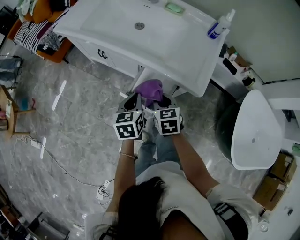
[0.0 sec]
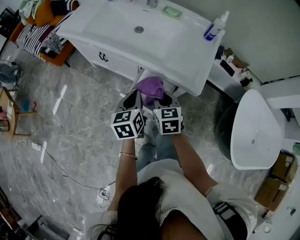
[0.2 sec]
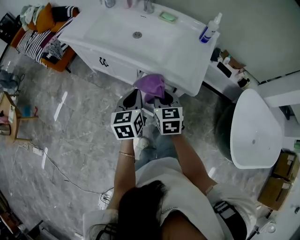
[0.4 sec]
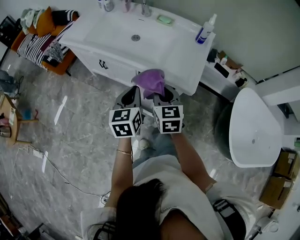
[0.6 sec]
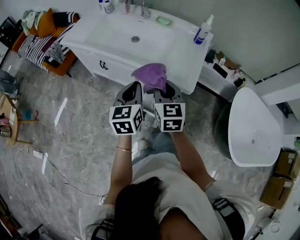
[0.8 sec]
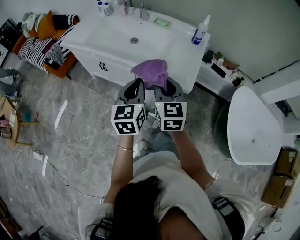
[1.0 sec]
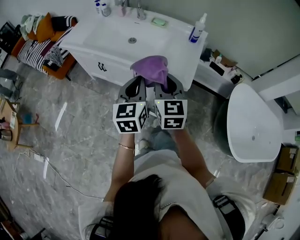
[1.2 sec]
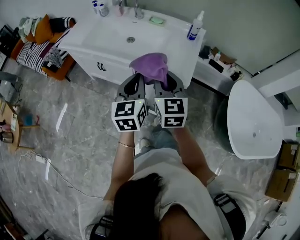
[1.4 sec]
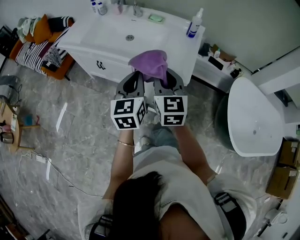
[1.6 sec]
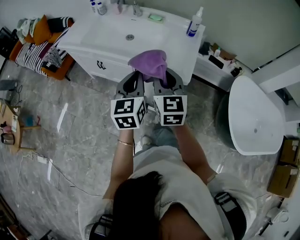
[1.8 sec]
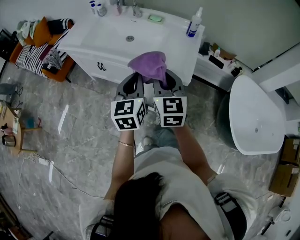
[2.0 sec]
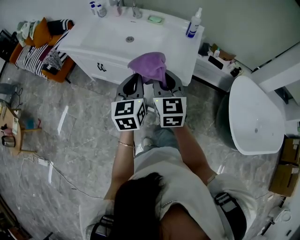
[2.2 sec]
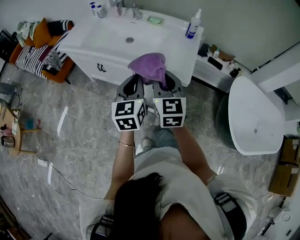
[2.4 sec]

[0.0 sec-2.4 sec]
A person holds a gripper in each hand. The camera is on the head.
0.0 sec to 1.2 sec: Both grippers move upward, about 20 cm. The left gripper rotates approximately 30 degrees, while the right gripper swivels approximately 30 degrees.
1.2 sec to 2.4 sec: The grippers stay close to where they were, moving slightly.

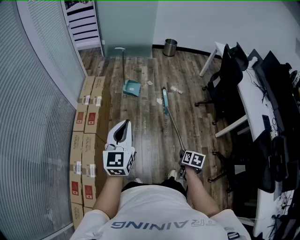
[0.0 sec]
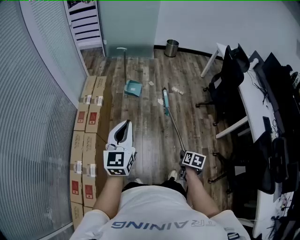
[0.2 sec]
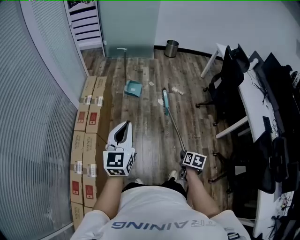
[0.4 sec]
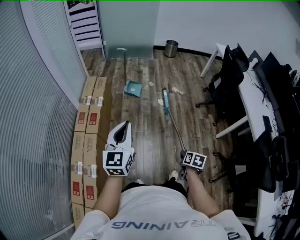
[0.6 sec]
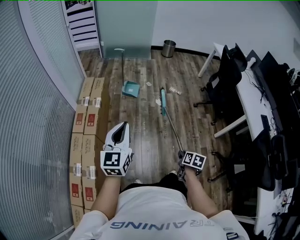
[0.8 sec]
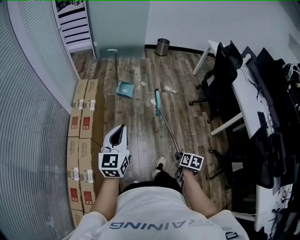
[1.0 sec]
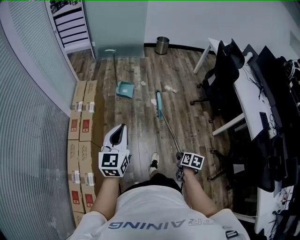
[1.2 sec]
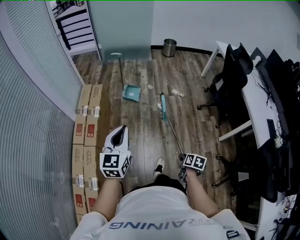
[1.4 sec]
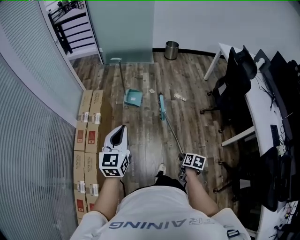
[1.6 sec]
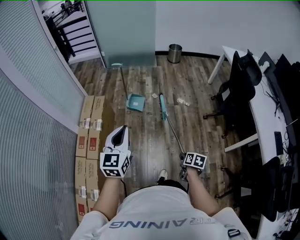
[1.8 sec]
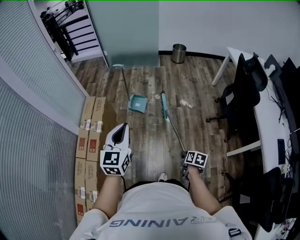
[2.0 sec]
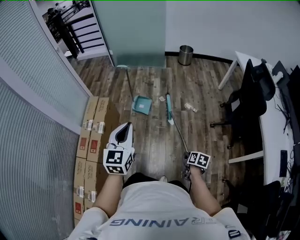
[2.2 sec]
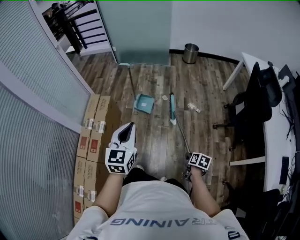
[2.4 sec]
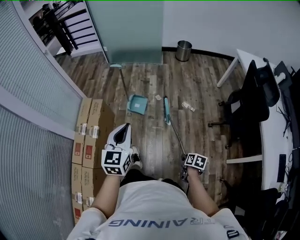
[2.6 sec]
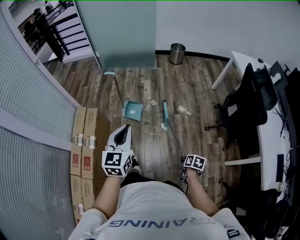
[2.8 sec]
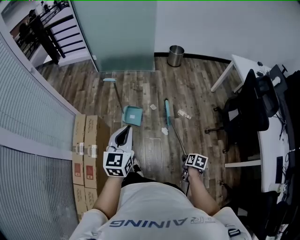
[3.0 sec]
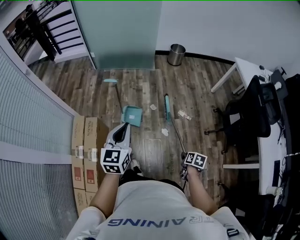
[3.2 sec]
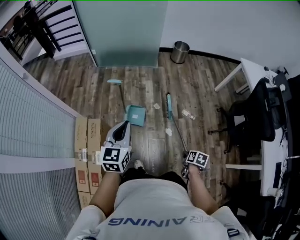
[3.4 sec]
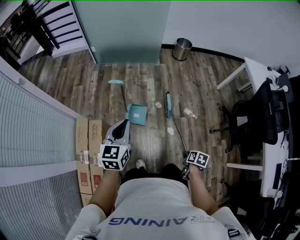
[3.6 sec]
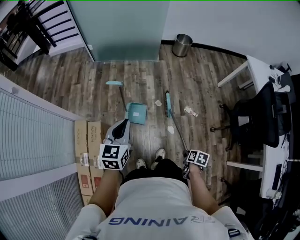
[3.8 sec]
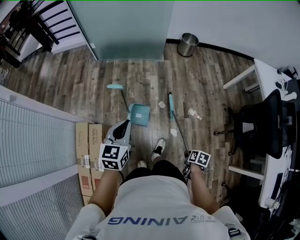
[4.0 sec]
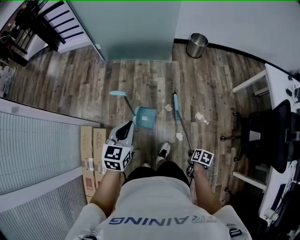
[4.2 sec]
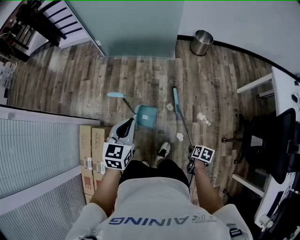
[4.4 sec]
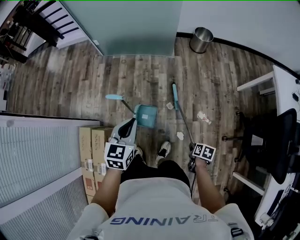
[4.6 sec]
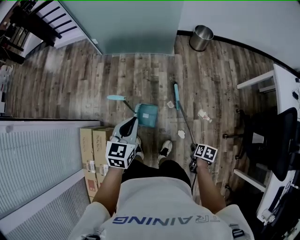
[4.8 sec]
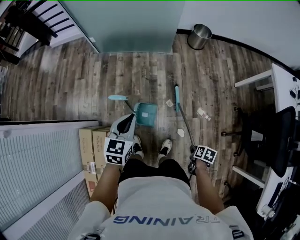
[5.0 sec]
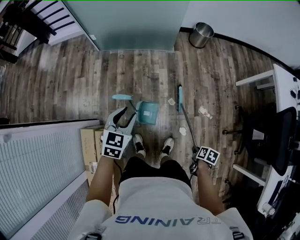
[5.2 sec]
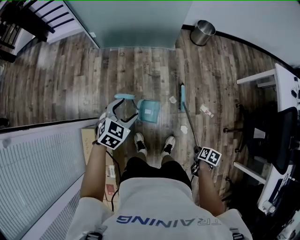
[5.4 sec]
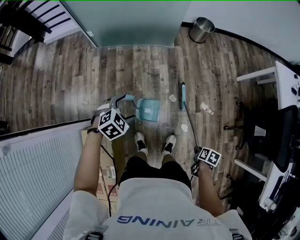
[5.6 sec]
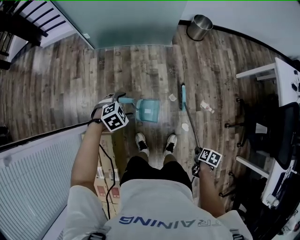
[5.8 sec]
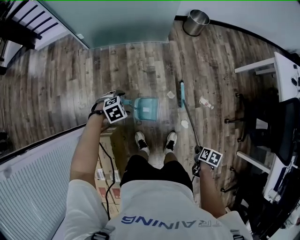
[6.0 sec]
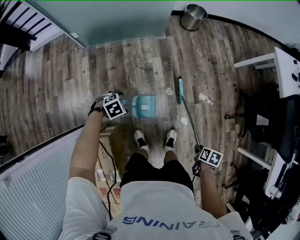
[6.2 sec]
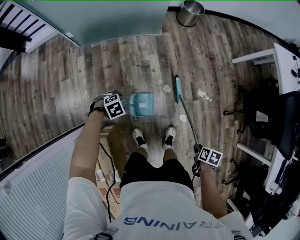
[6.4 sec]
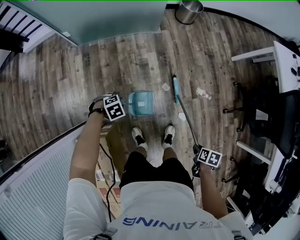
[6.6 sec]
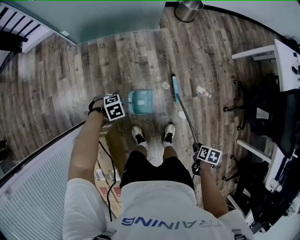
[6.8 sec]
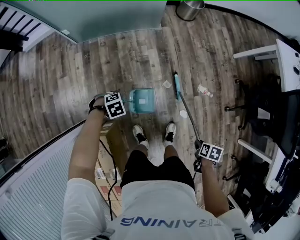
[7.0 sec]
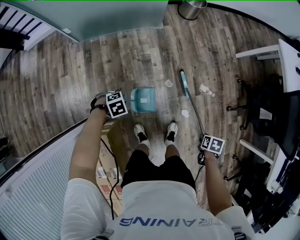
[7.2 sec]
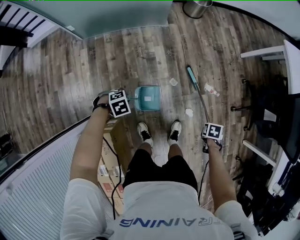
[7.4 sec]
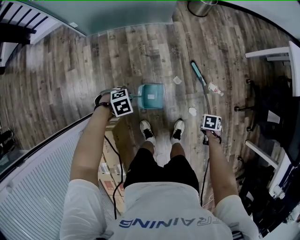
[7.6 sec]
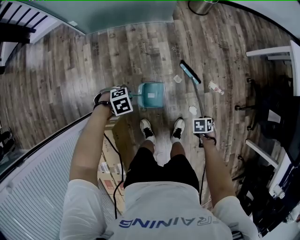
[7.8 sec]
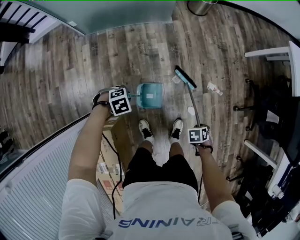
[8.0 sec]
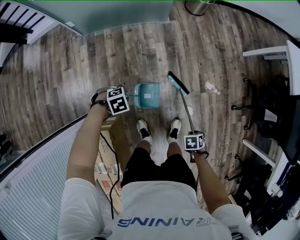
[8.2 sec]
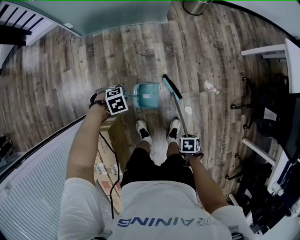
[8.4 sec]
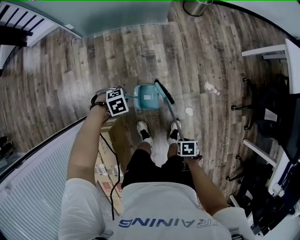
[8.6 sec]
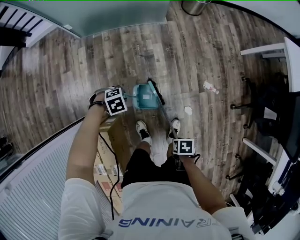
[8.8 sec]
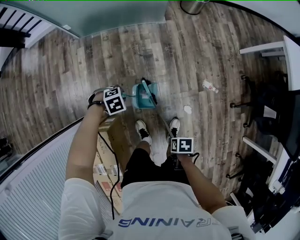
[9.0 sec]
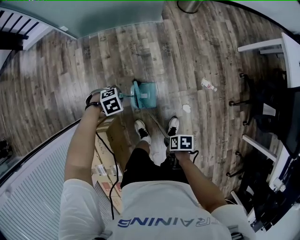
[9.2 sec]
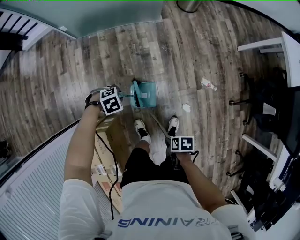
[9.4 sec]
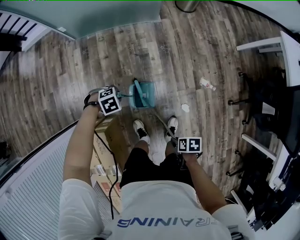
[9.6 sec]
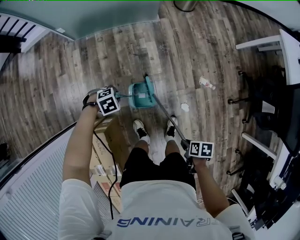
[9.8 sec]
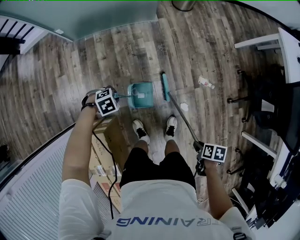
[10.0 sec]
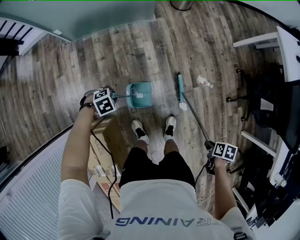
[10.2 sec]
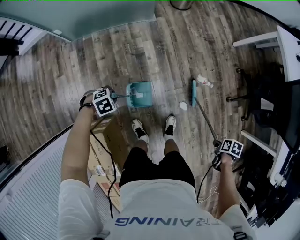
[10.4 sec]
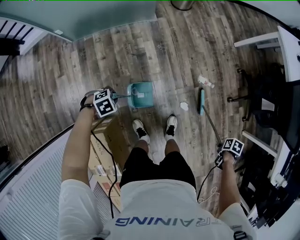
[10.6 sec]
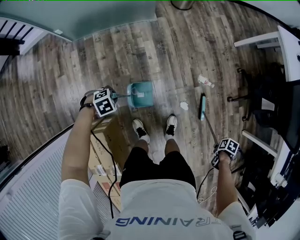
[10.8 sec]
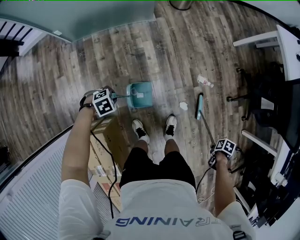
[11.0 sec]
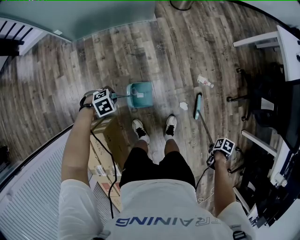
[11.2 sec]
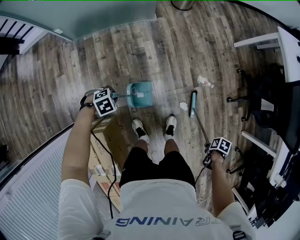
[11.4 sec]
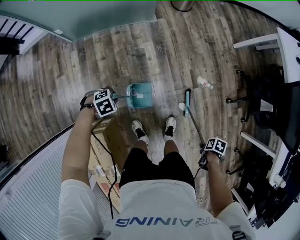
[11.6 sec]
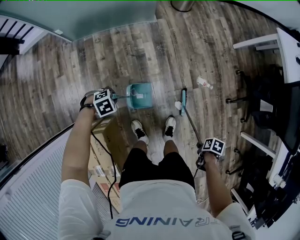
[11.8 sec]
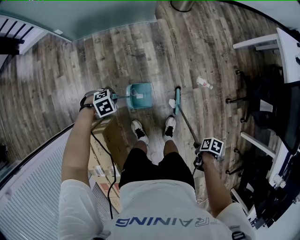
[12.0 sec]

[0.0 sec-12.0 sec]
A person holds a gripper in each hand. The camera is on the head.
0.0 sec to 1.6 sec: The left gripper ends up approximately 15 cm from where it was.
1.6 sec to 3.0 sec: The left gripper changes place by approximately 35 cm.
3.0 sec to 4.4 sec: The left gripper ends up roughly 35 cm from where it was.
4.4 sec to 6.0 sec: The left gripper is displaced downward by some 25 cm, points its fingers roughly 50 degrees further downward, and opens its fingers.
6.0 sec to 7.6 sec: The left gripper goes approximately 5 cm downward, and closes its fingers.

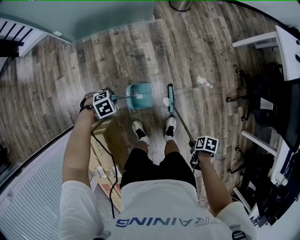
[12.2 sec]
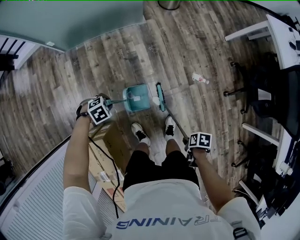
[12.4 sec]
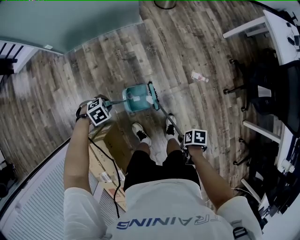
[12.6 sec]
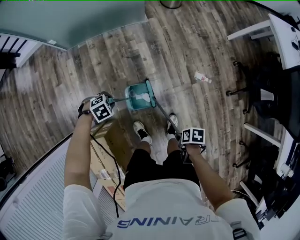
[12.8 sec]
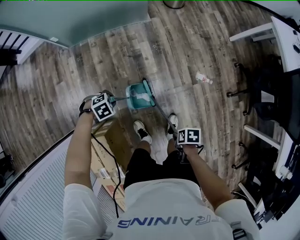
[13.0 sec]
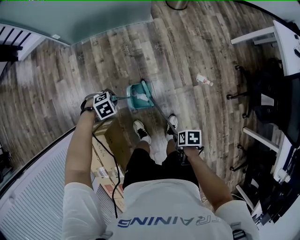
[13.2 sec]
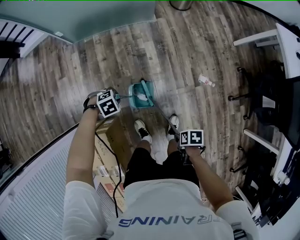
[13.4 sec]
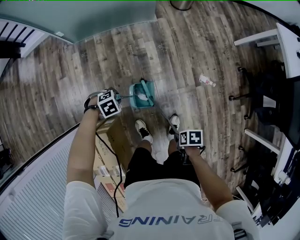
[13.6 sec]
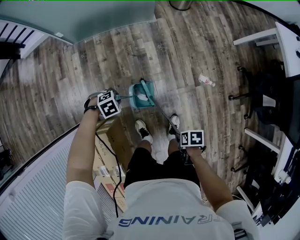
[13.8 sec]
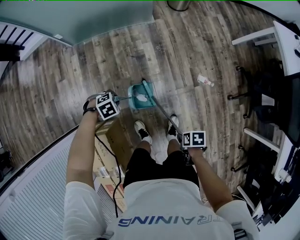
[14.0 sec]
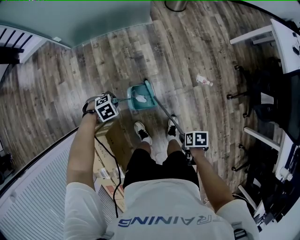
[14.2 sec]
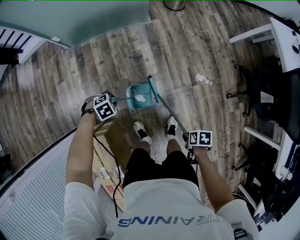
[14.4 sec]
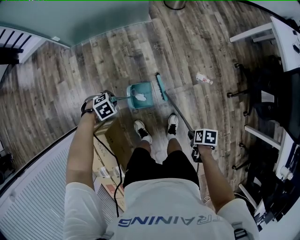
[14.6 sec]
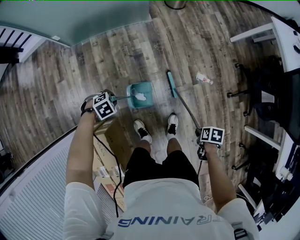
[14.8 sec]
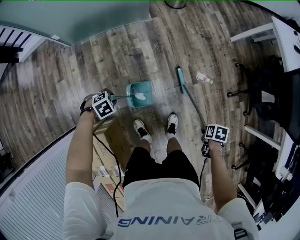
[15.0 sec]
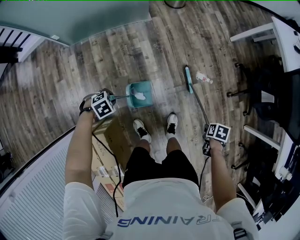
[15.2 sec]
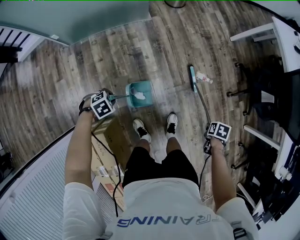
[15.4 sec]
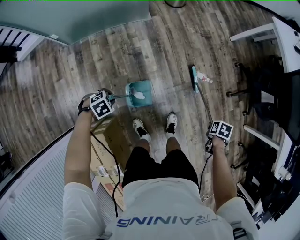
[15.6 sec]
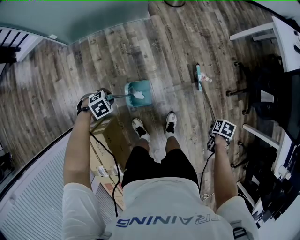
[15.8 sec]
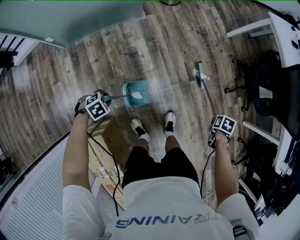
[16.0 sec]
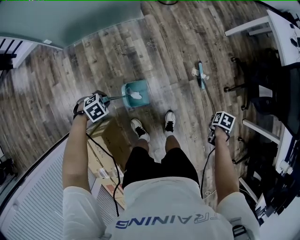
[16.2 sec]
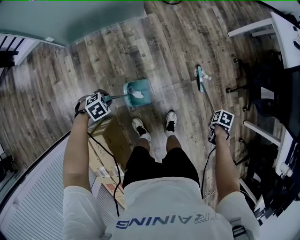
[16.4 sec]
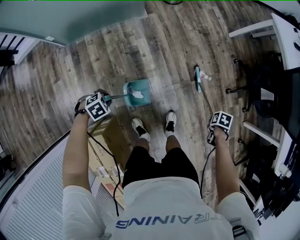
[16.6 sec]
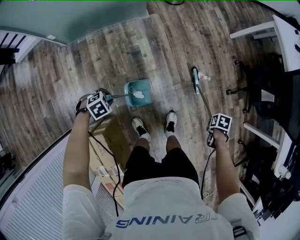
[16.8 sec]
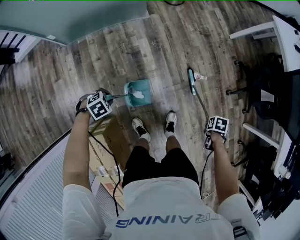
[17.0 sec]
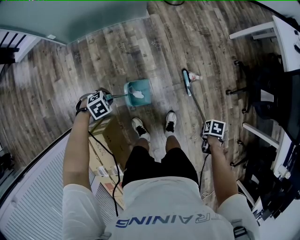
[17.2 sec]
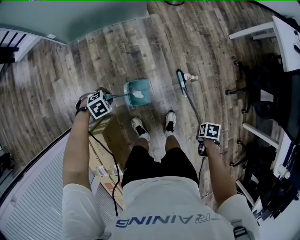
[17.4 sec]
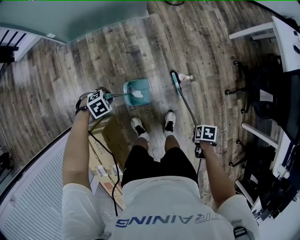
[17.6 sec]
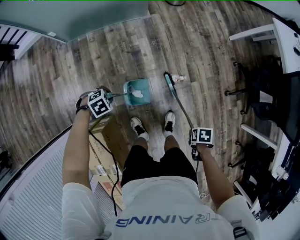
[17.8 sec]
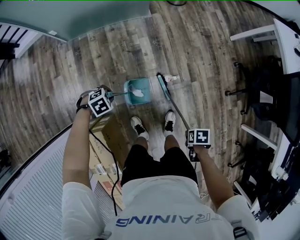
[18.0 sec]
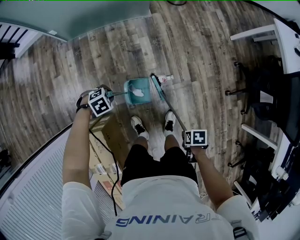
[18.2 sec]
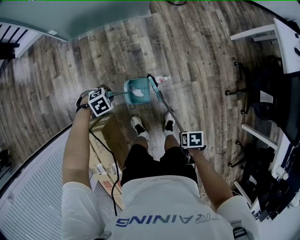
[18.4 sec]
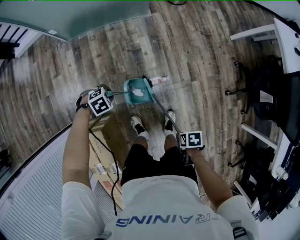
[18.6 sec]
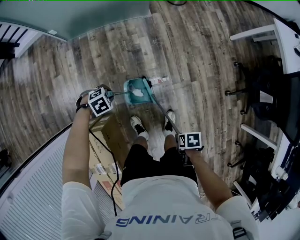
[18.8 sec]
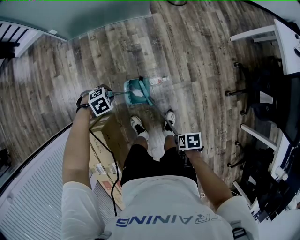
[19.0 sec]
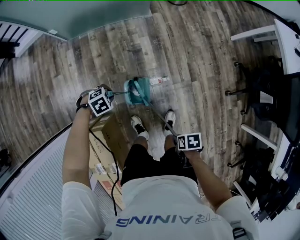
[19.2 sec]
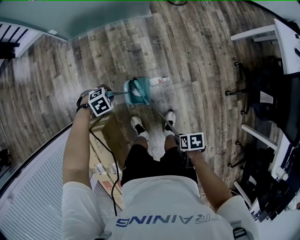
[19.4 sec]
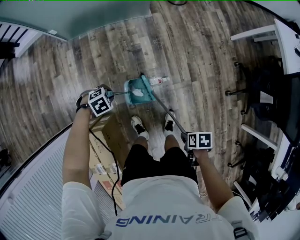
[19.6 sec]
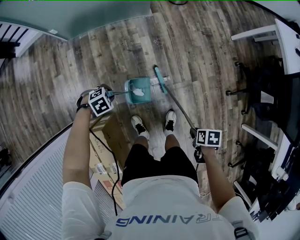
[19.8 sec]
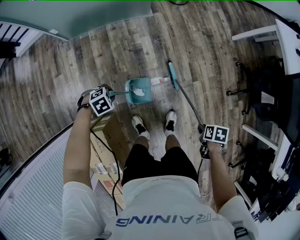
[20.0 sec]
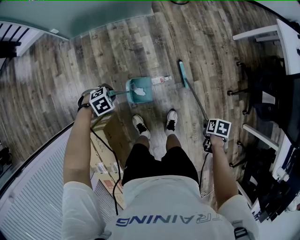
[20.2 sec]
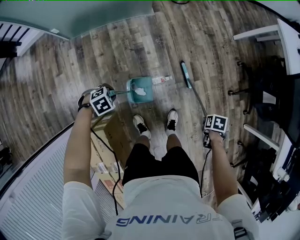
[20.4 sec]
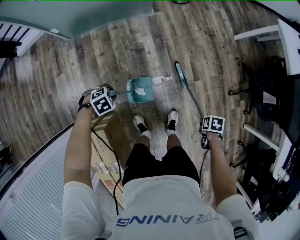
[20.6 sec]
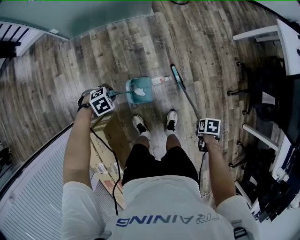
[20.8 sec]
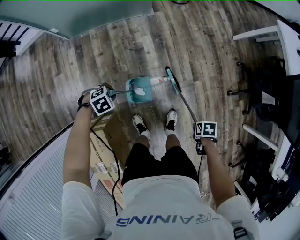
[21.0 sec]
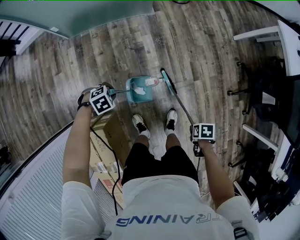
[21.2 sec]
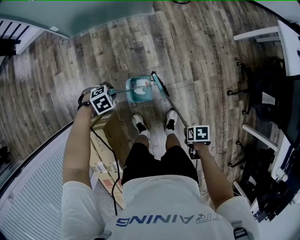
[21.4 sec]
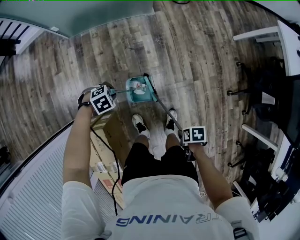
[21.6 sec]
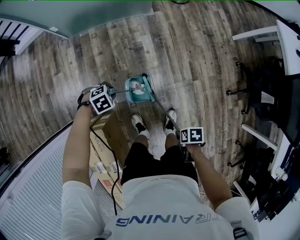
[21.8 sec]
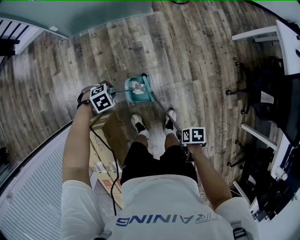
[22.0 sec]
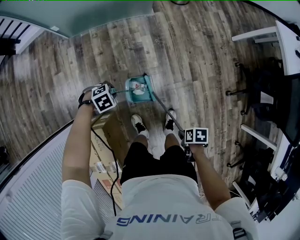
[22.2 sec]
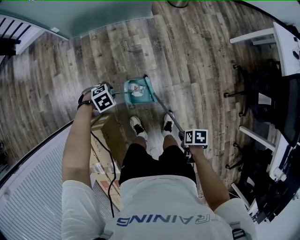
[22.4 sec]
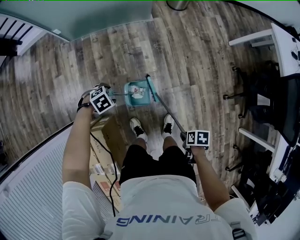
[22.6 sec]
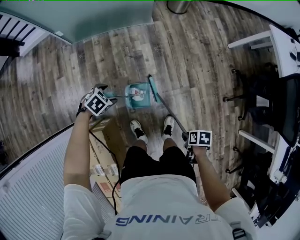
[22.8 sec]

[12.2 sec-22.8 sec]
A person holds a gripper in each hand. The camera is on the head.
21.2 sec to 22.8 sec: The left gripper turns by approximately 20 degrees, and opens up.
